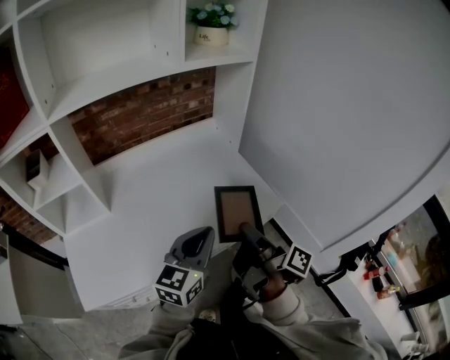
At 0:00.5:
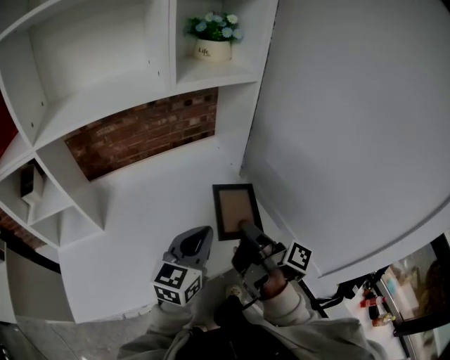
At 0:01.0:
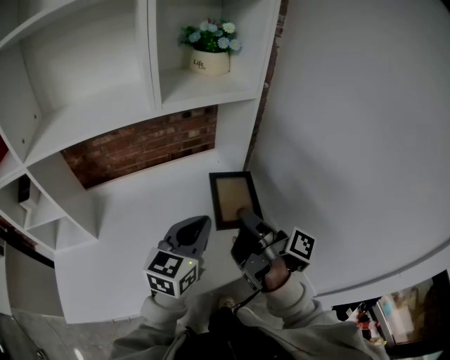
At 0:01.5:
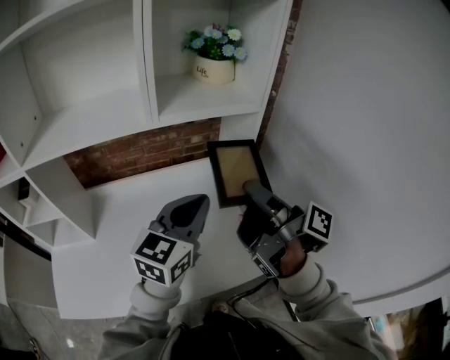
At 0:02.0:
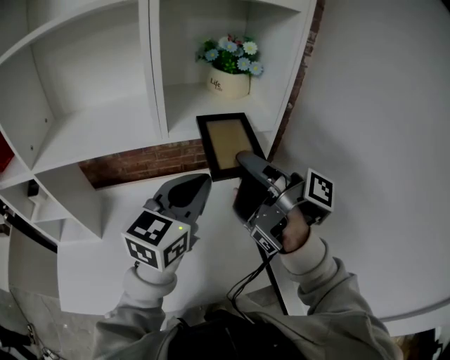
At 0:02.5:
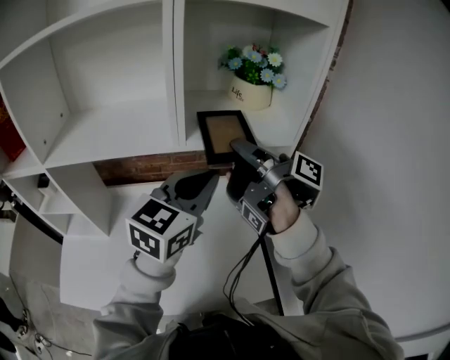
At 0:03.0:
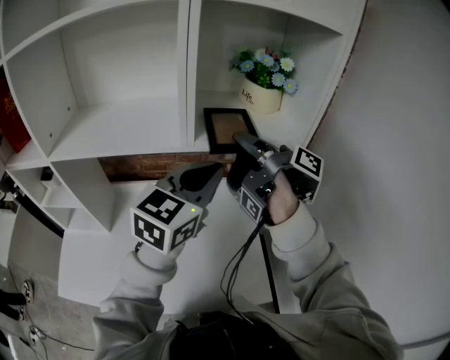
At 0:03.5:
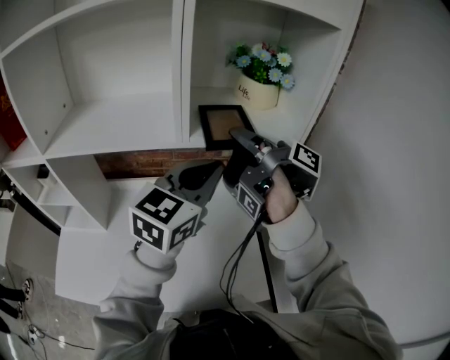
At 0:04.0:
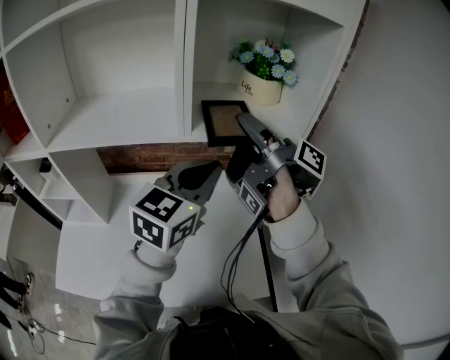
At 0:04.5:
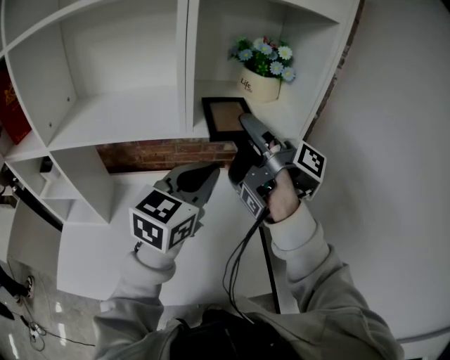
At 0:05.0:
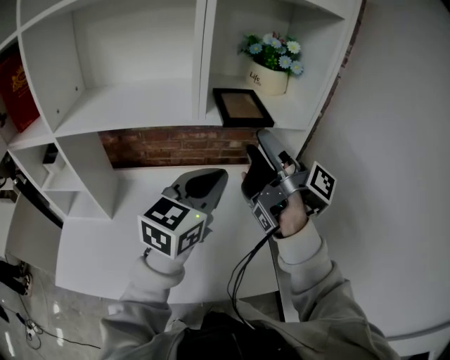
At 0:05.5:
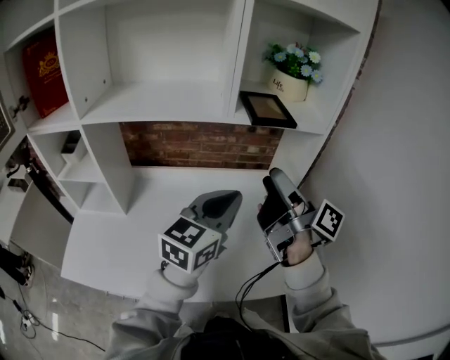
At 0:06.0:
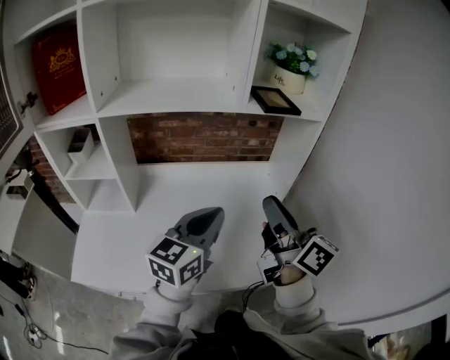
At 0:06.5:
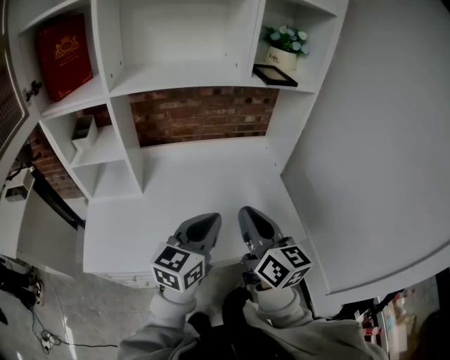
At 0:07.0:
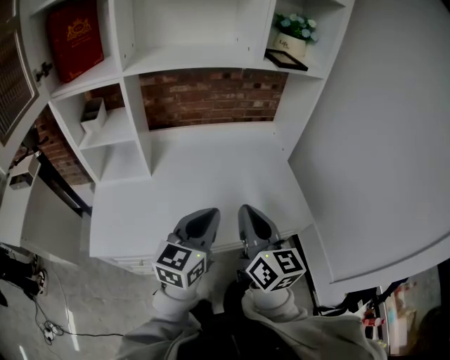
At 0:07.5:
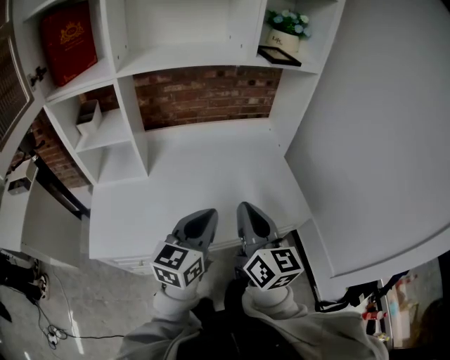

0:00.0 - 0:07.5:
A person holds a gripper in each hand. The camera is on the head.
0:00.0 - 0:02.0: The left gripper changes place by about 40 cm.
0:04.0 - 0:05.5: The left gripper ends up some 15 cm from where it was.
0:05.5 - 0:07.5: The left gripper ends up some 30 cm from where it was.

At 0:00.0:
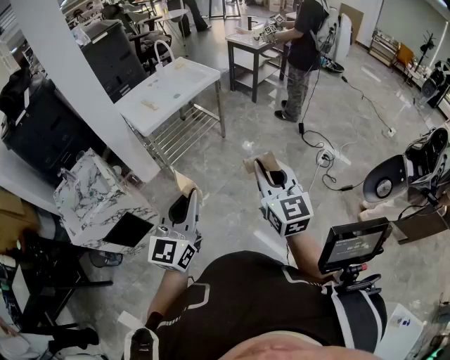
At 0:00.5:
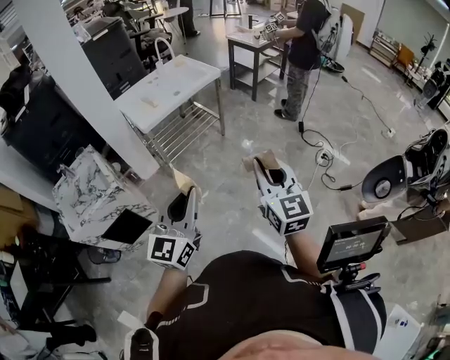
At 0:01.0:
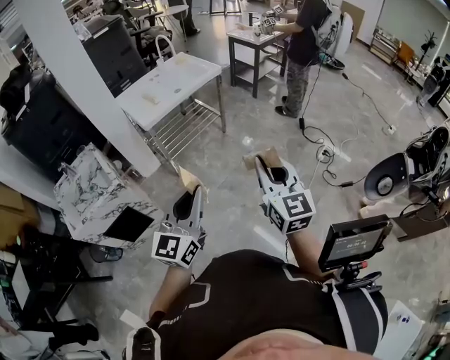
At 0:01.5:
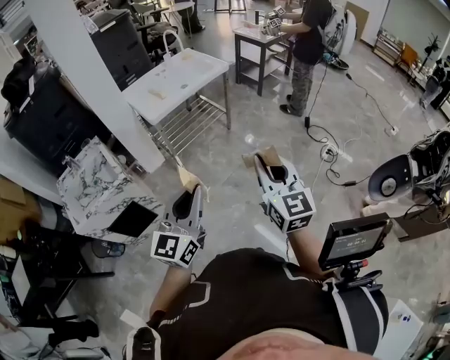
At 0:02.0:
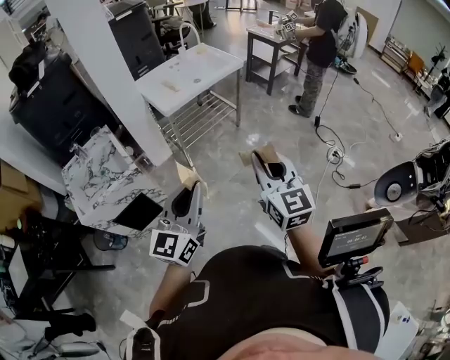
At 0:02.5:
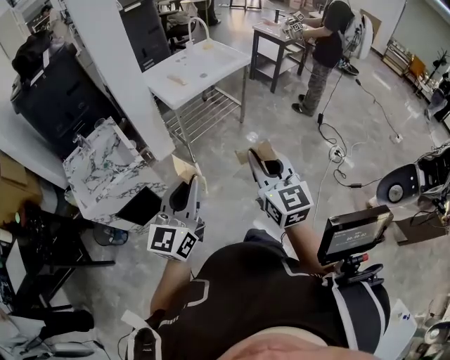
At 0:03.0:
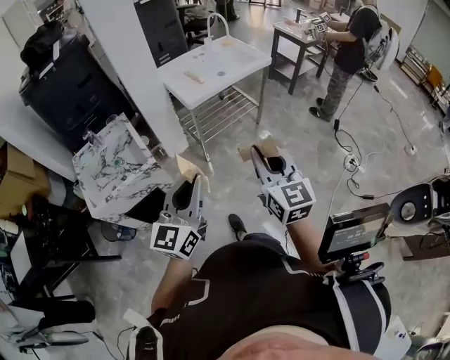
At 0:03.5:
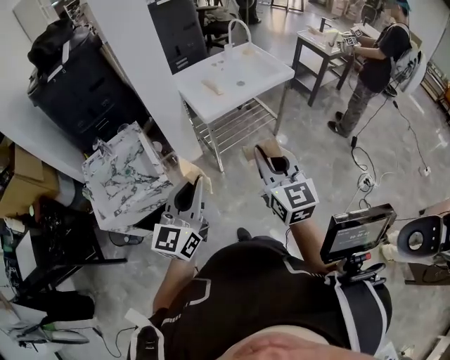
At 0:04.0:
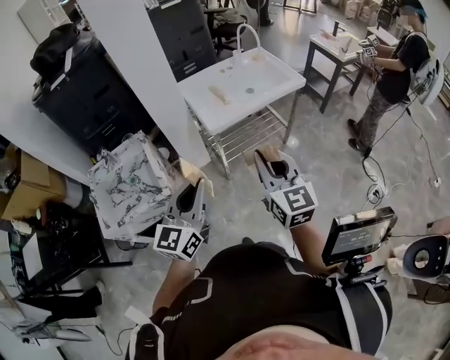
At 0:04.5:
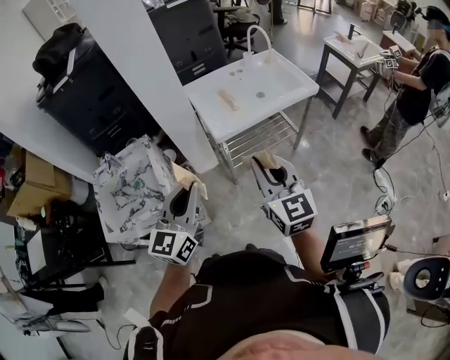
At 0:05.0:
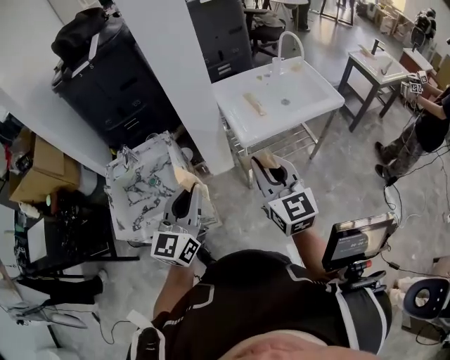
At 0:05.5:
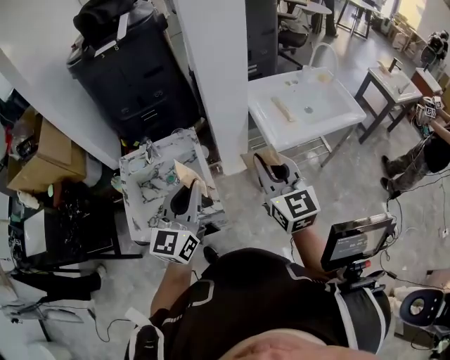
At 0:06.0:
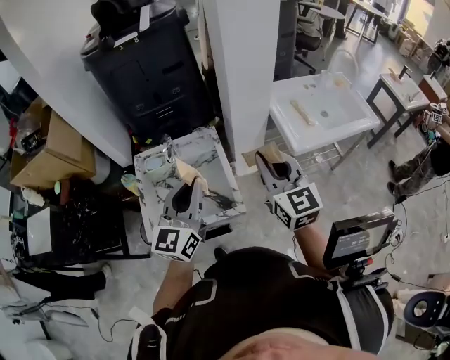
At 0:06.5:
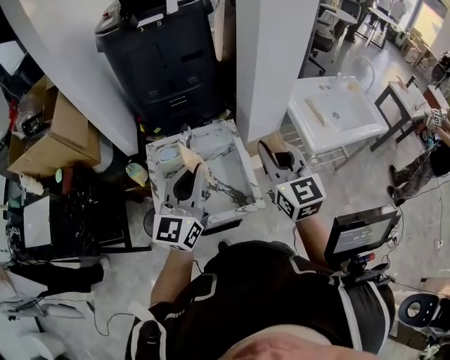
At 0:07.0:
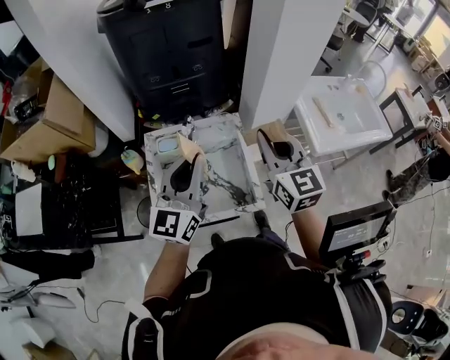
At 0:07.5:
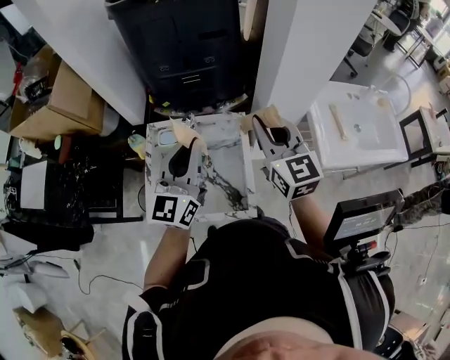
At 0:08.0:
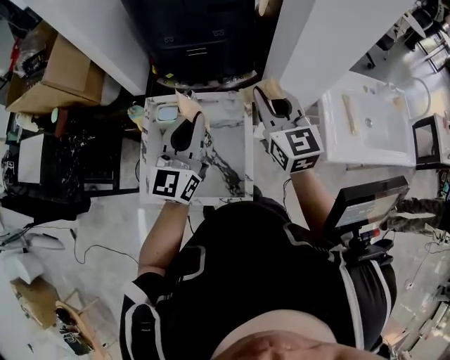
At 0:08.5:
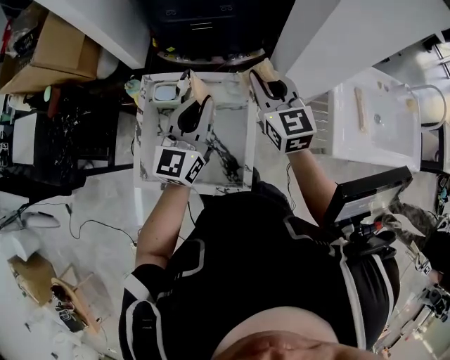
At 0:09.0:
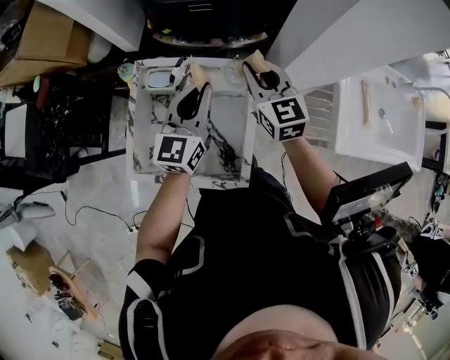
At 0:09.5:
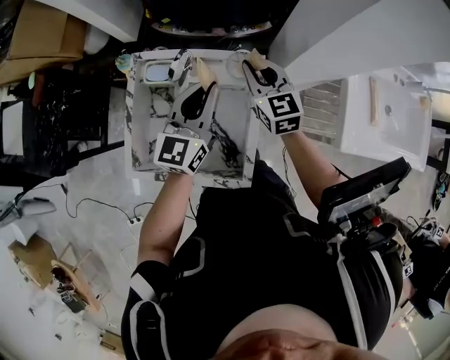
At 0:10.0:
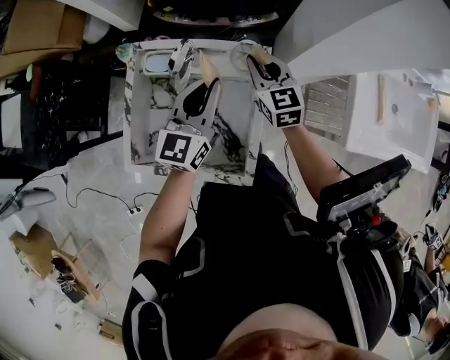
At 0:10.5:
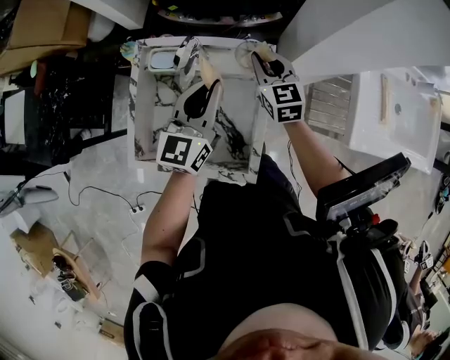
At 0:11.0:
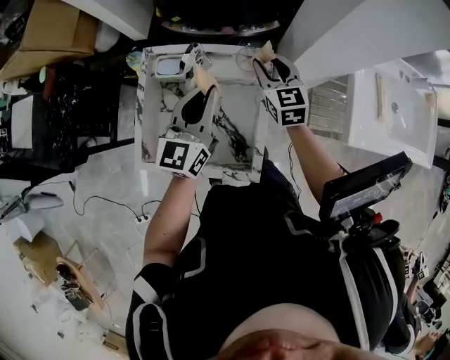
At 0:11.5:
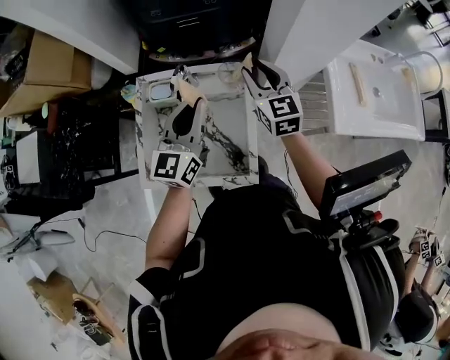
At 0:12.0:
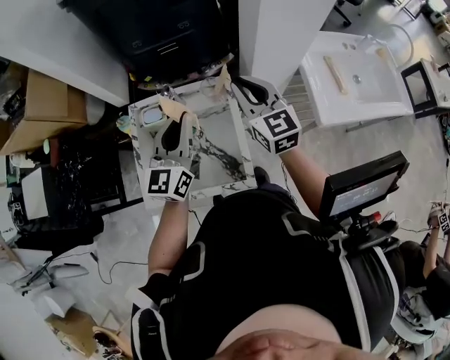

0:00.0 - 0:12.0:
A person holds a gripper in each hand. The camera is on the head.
0:00.0 - 0:02.0: The grippers both shift to the left by about 10 cm.
0:02.0 - 0:04.0: The grippers both shift forward and to the left by about 25 cm.
0:04.0 - 0:06.0: Both grippers move to the left and forward, some 35 cm.
0:06.0 - 0:08.0: The grippers both shift forward by some 20 cm.
0:08.0 - 0:10.0: The left gripper moves downward, roughly 15 cm. Meanwhile the right gripper heads downward, covering about 25 cm.
0:10.0 - 0:12.0: The left gripper heads upward and backward, covering roughly 15 cm, while the right gripper shifts some 20 cm upward and backward, and opens and closes again.

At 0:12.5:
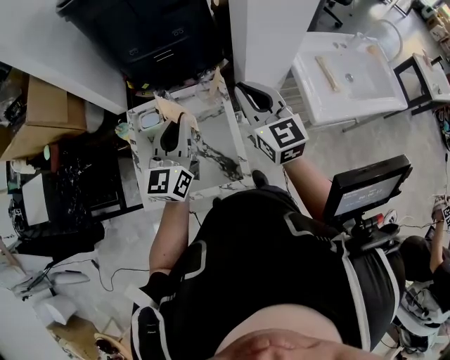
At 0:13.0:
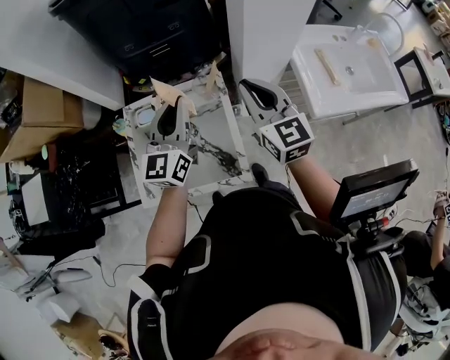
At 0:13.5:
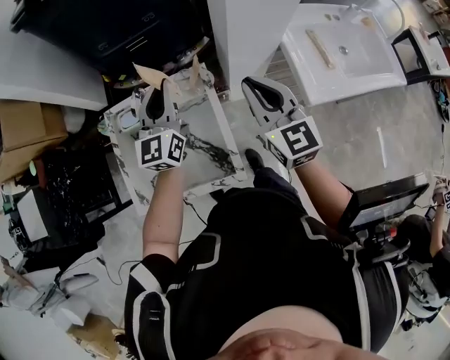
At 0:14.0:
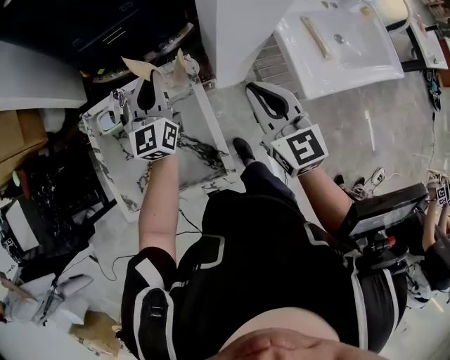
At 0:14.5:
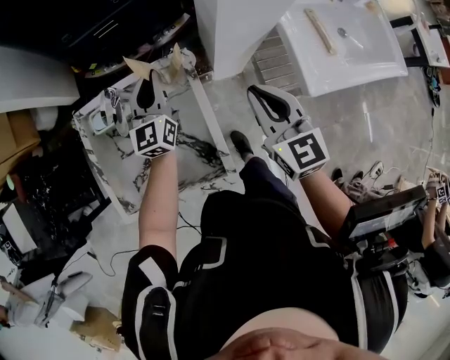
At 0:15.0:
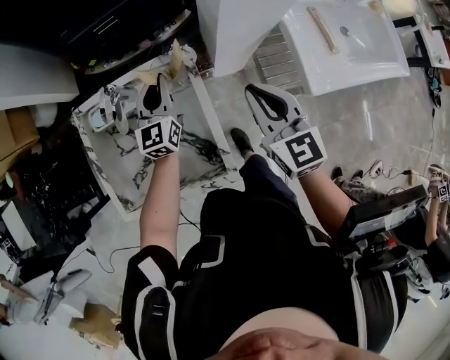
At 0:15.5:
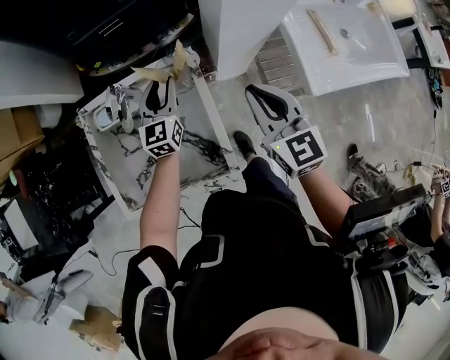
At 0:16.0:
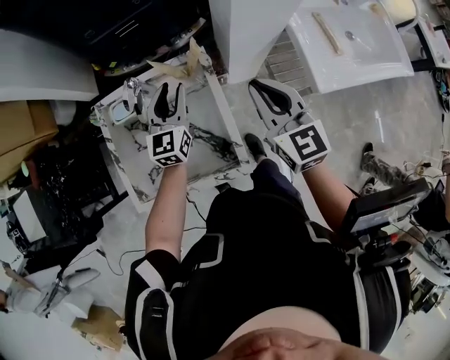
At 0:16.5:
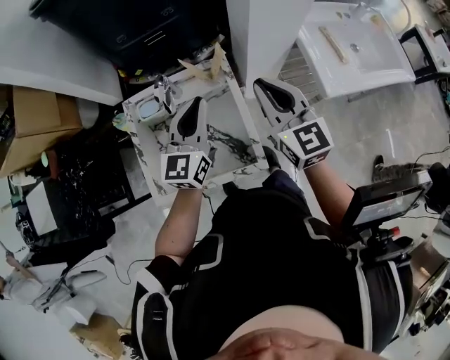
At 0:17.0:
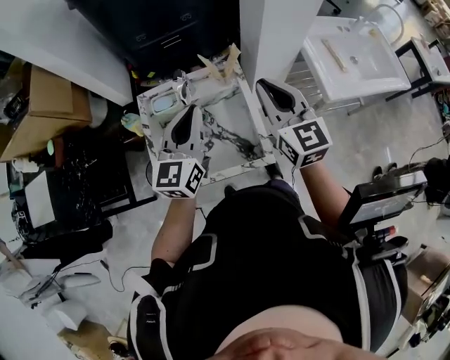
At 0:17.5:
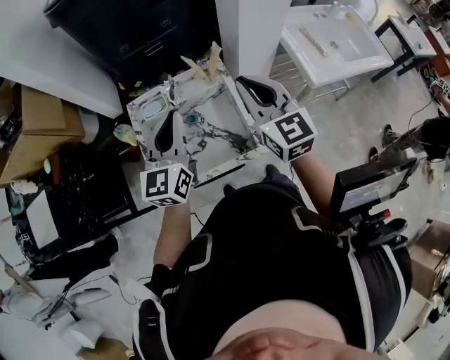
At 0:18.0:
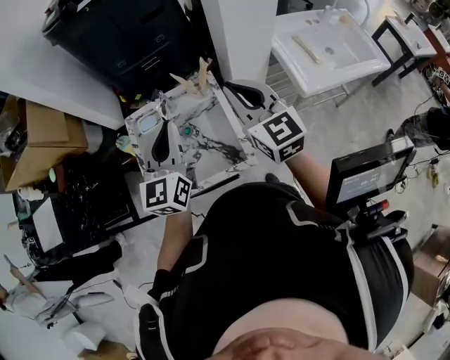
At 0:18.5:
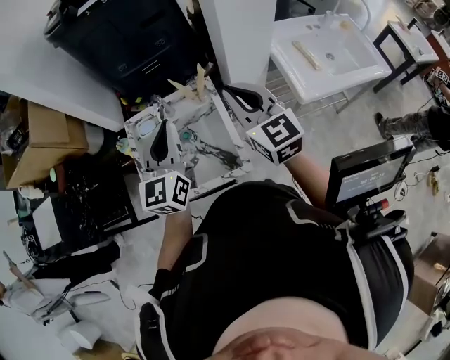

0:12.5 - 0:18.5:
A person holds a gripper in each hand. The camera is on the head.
0:12.5 - 0:14.5: The left gripper is displaced downward and forward by about 20 cm. The right gripper shifts approximately 15 cm downward and to the right.
0:14.5 - 0:16.5: The right gripper heads upward and to the left, covering approximately 10 cm, while the left gripper travels backward and upward by about 20 cm, and opens and closes again.
0:16.5 - 0:18.5: The left gripper travels upward and backward by some 10 cm, while the right gripper heads upward, covering roughly 5 cm.

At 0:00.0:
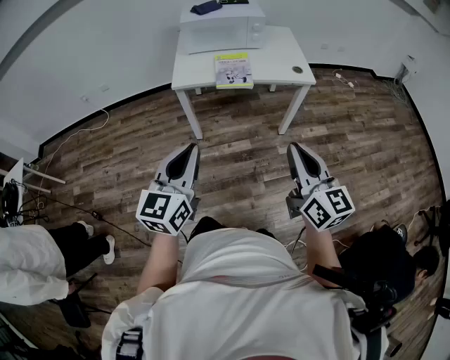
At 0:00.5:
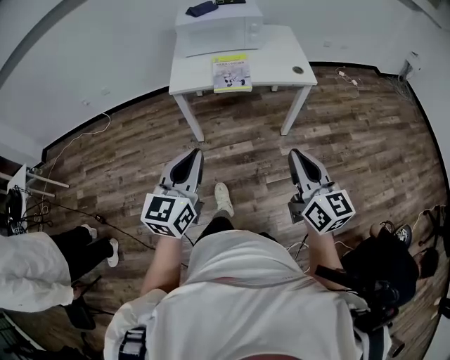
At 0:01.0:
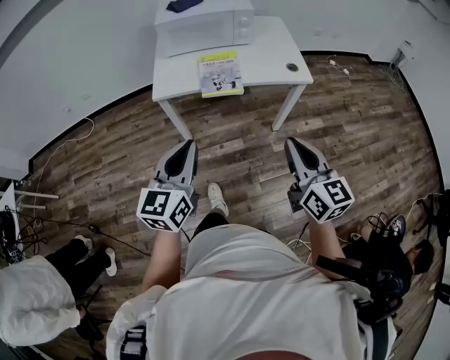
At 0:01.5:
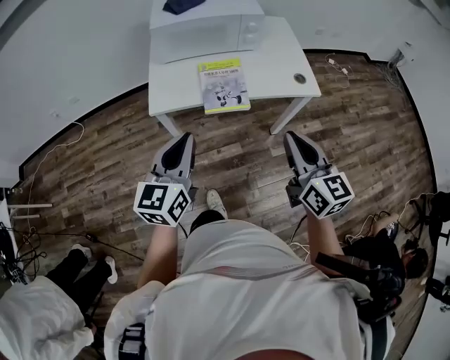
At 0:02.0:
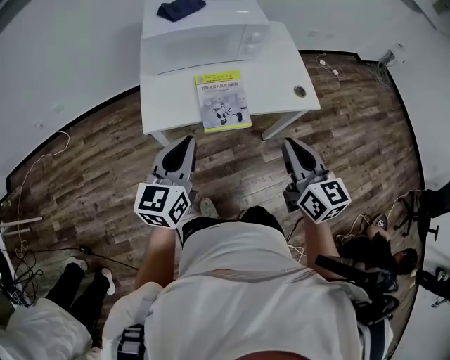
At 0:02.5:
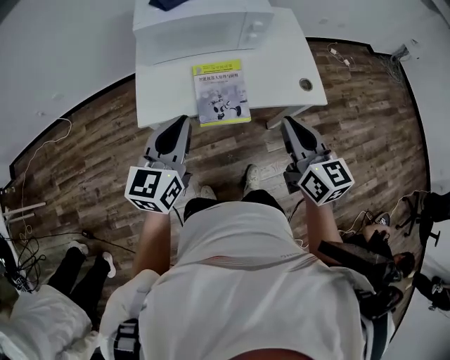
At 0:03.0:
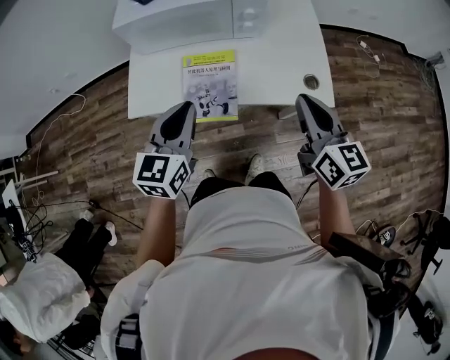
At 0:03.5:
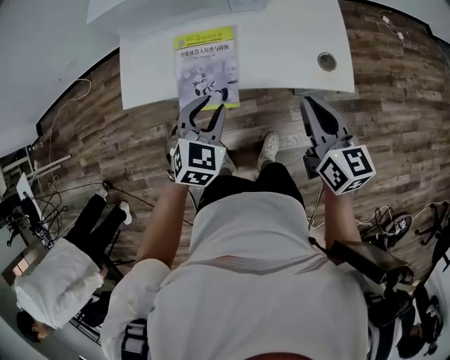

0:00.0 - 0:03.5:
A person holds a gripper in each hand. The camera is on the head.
0:00.0 - 0:02.0: Both grippers move forward, roughly 35 cm.
0:02.0 - 0:03.5: The left gripper travels to the right, downward and forward by approximately 30 cm, tilts its fingers some 30 degrees downward, and opens. The right gripper is displaced to the right, forward and downward by some 25 cm.
